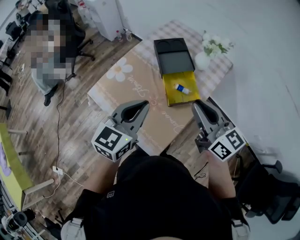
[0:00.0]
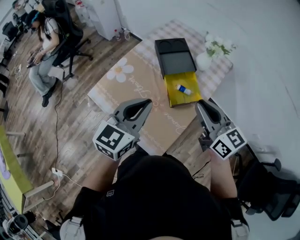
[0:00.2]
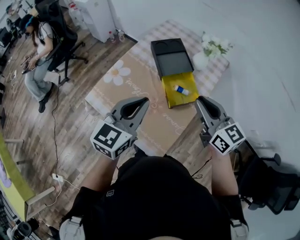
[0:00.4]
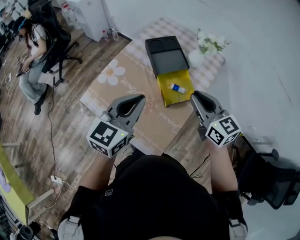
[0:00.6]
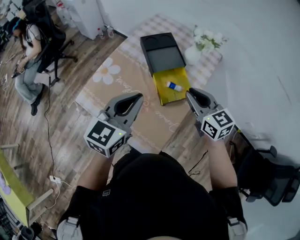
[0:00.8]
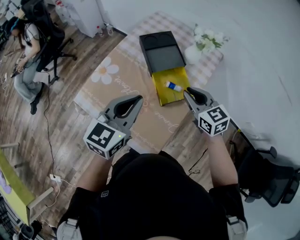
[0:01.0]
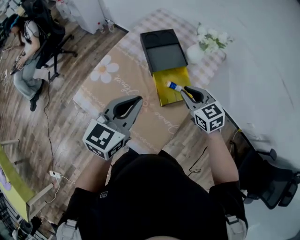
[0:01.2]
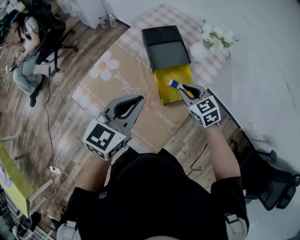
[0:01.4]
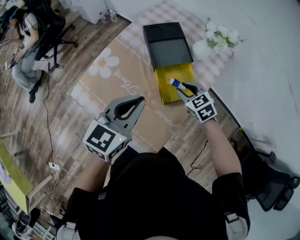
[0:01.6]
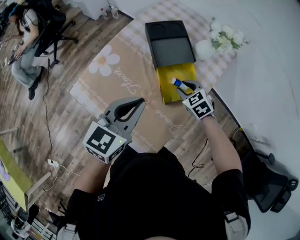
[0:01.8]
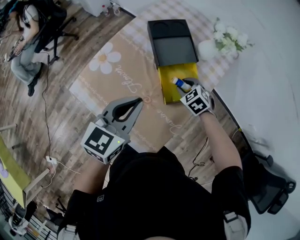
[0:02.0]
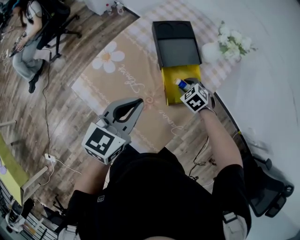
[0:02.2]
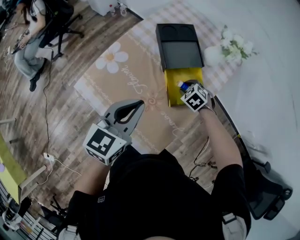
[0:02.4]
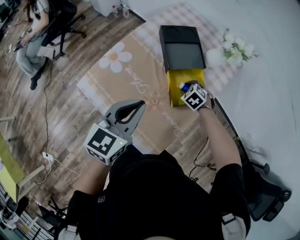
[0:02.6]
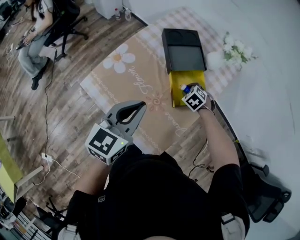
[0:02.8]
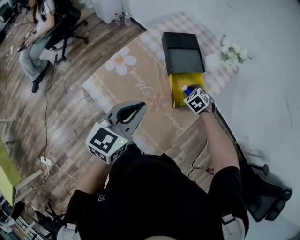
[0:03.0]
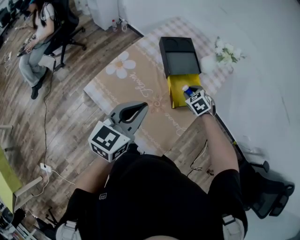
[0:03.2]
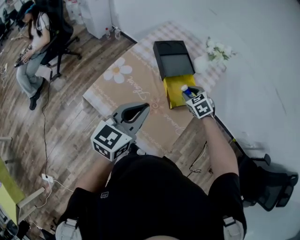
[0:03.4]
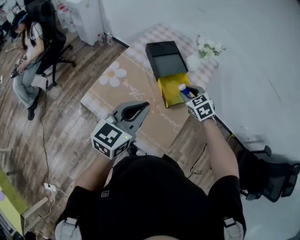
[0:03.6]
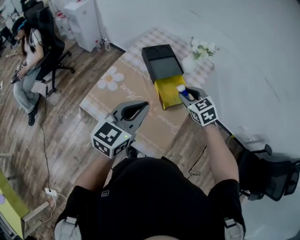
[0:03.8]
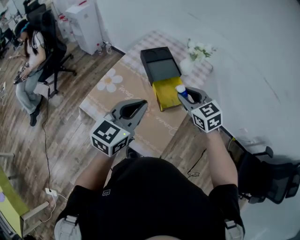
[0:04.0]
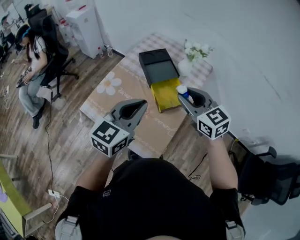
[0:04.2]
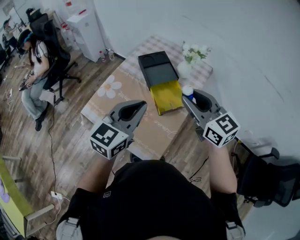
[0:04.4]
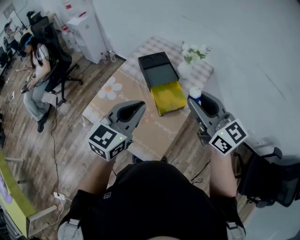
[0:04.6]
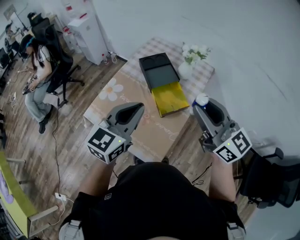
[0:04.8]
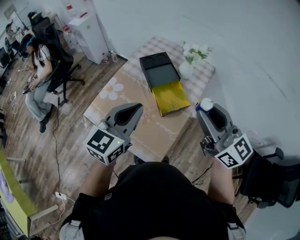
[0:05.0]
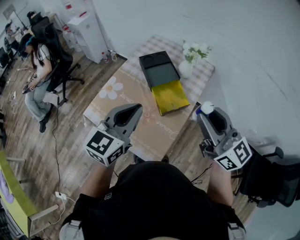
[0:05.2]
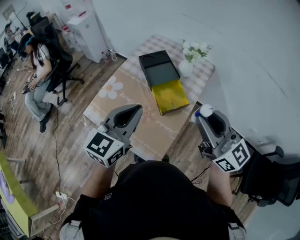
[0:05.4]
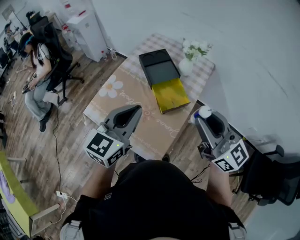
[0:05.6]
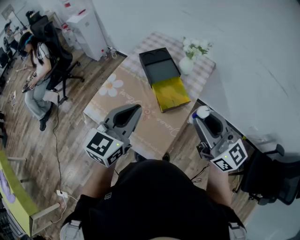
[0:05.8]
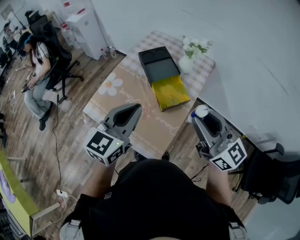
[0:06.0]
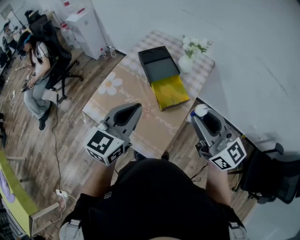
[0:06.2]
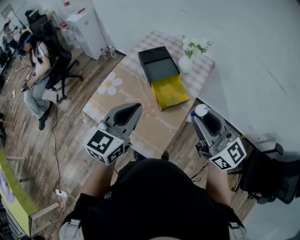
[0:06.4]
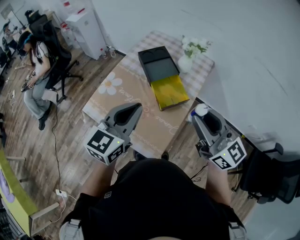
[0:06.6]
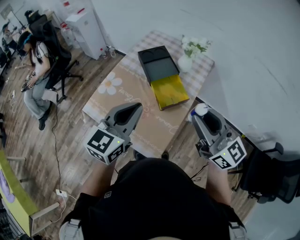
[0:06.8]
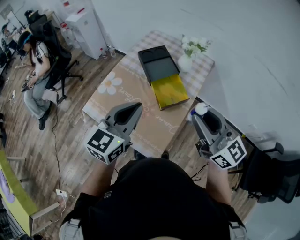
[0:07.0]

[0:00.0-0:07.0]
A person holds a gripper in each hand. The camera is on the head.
0:00.0 to 0:01.4: The right gripper heads downward and forward, covering about 25 cm, and tips its fingers downward by some 40 degrees, while the left gripper goes roughly 5 cm forward.
0:01.4 to 0:02.8: The left gripper heads to the left, covering about 5 cm. The right gripper shifts some 15 cm downward, tilts its fingers approximately 30 degrees downward, and opens.
0:02.8 to 0:04.2: The left gripper moves upward and to the right, about 10 cm, while the right gripper heads upward, covering some 35 cm, and tips its fingers upward by roughly 50 degrees.
0:04.2 to 0:05.6: The right gripper goes some 15 cm backward, upward and to the right, and points its fingers about 30 degrees further upward.
0:05.6 to 0:07.0: There are only small adjustments of the grippers.

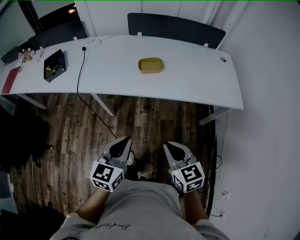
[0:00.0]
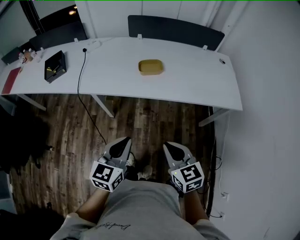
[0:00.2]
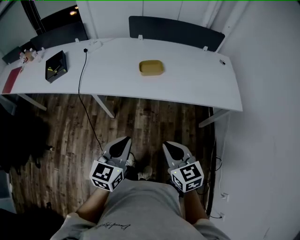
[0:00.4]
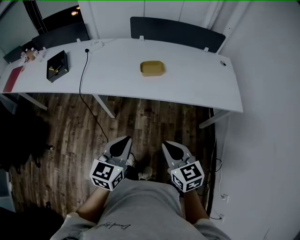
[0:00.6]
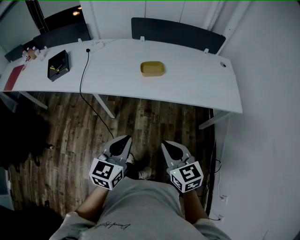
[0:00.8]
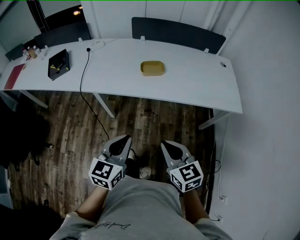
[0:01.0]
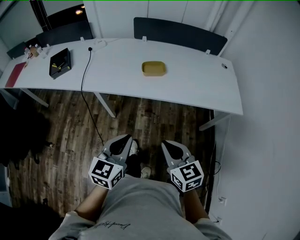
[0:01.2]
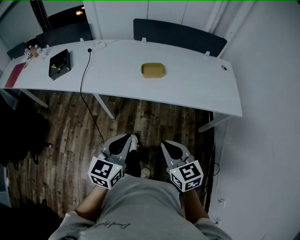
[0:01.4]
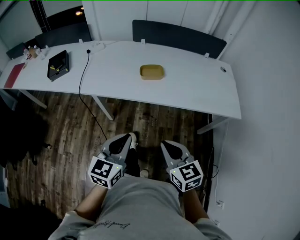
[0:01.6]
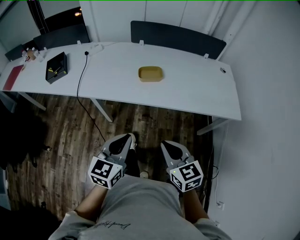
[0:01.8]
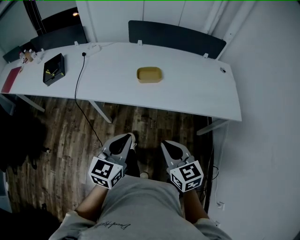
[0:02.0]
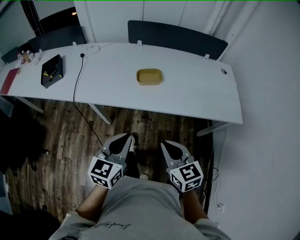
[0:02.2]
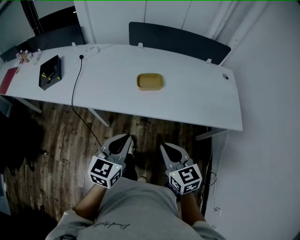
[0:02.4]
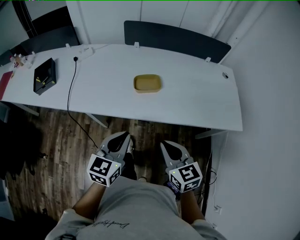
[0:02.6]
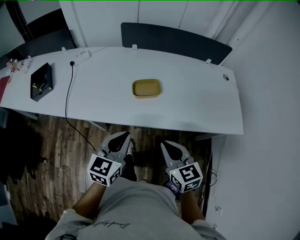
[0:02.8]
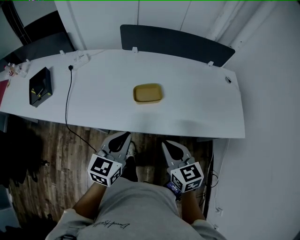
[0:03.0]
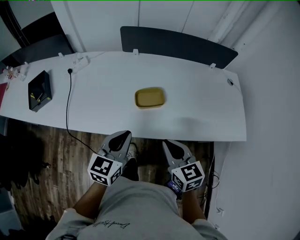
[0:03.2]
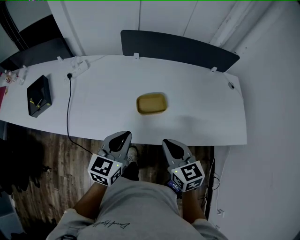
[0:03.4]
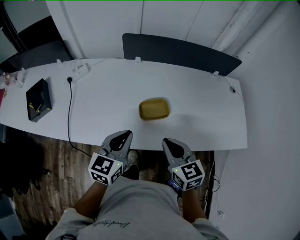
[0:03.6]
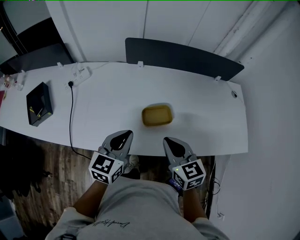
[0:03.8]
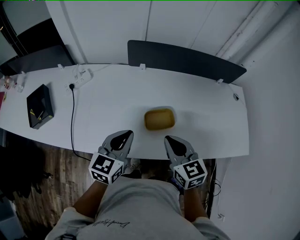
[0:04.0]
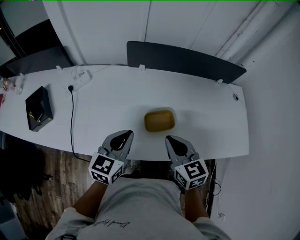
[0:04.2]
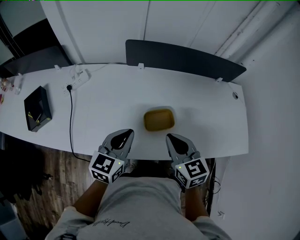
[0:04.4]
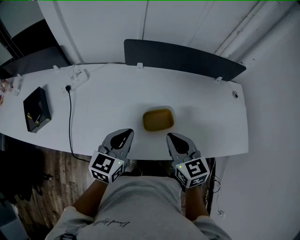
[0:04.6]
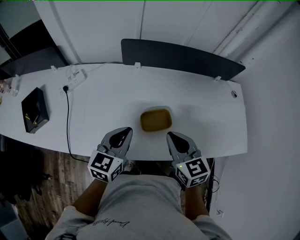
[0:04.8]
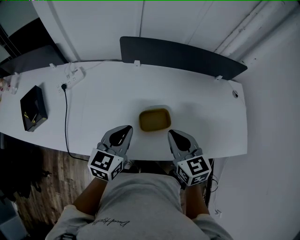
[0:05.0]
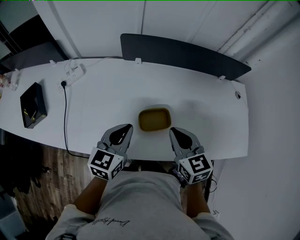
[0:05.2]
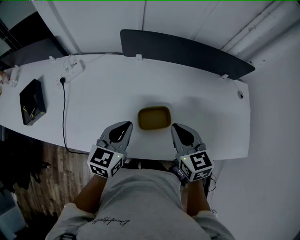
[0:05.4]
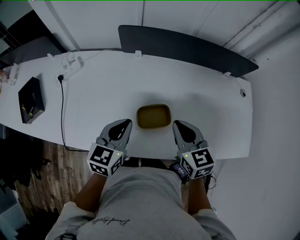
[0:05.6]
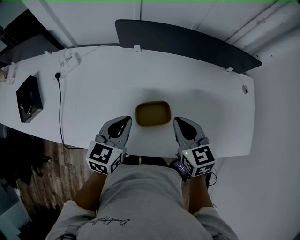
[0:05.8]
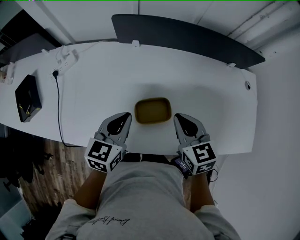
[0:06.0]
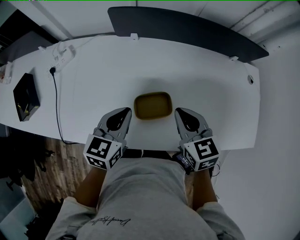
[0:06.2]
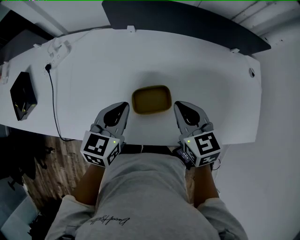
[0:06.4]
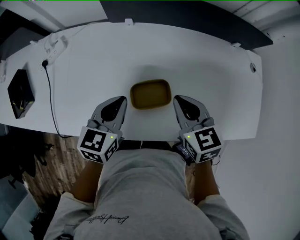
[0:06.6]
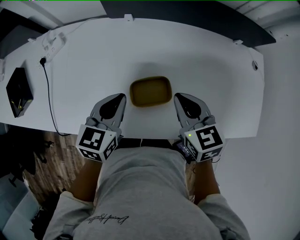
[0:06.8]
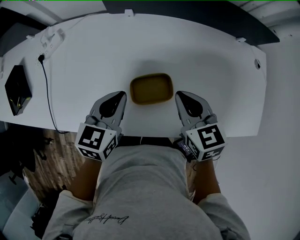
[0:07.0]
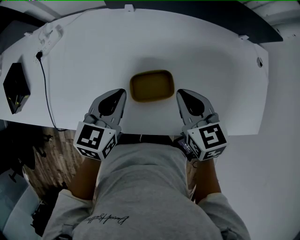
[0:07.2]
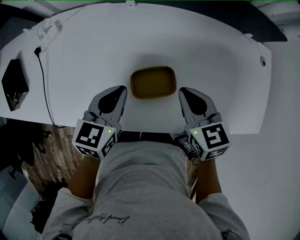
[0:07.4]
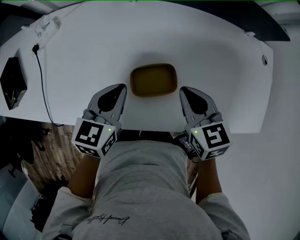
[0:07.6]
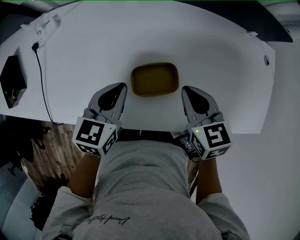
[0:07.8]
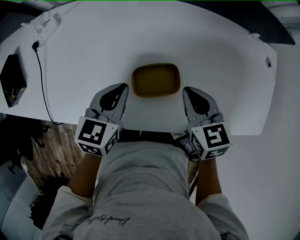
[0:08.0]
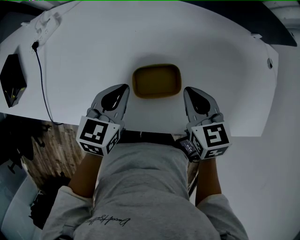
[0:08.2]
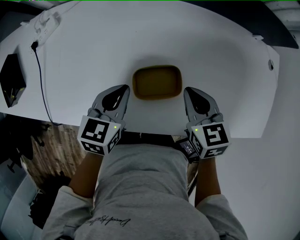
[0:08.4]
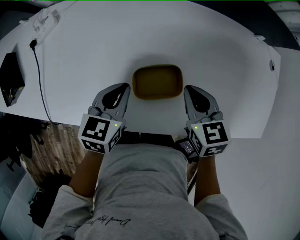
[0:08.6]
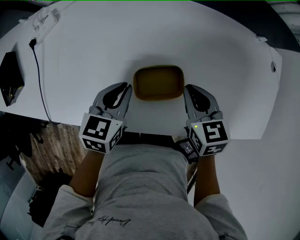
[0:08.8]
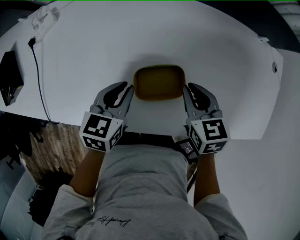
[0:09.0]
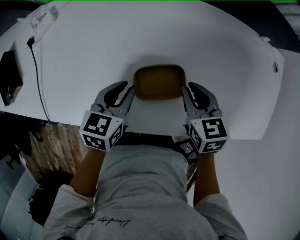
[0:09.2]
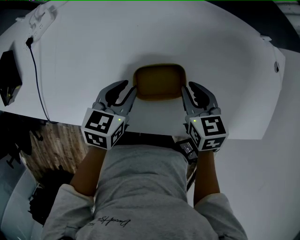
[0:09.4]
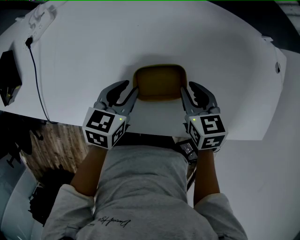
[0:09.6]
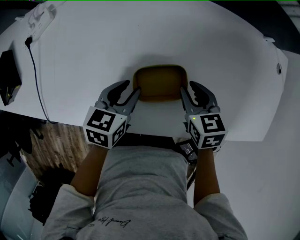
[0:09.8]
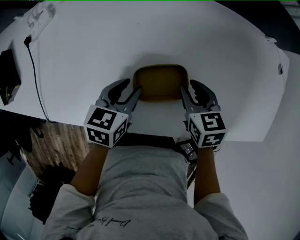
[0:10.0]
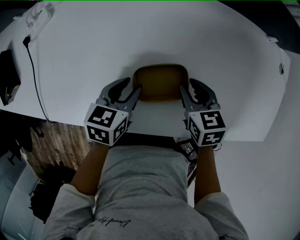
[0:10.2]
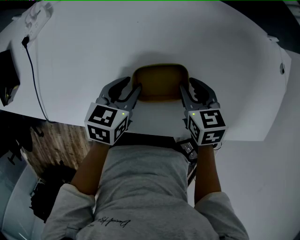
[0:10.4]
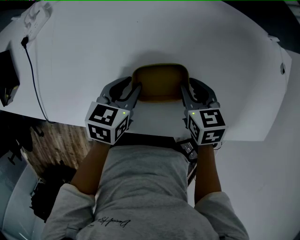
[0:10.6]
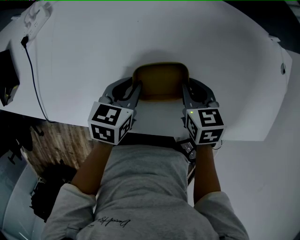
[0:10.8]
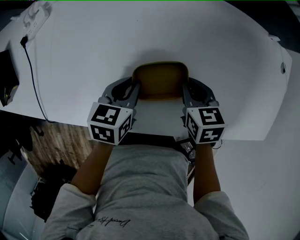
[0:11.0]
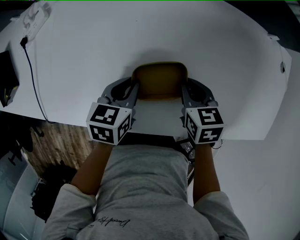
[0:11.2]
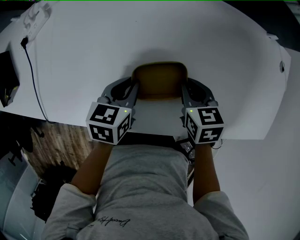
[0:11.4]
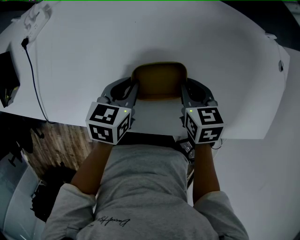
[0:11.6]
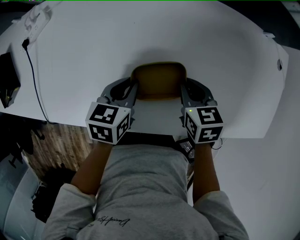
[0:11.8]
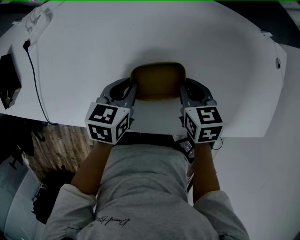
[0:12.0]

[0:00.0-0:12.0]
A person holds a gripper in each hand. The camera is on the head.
0:00.0 to 0:01.6: There are only small adjustments of the grippers.
0:01.6 to 0:03.0: The two grippers go about 25 cm forward.
0:03.0 to 0:04.4: The two grippers go about 20 cm forward.
0:04.4 to 0:06.0: The left gripper goes some 10 cm forward and downward; the right gripper travels forward and to the right by roughly 10 cm.
0:06.0 to 0:07.6: Both grippers travel together downward, approximately 5 cm.
0:07.6 to 0:09.0: Both grippers move downward, approximately 5 cm.
0:09.0 to 0:10.4: Both grippers travel together downward, about 5 cm. The left gripper opens up.
0:10.4 to 0:12.0: The left gripper closes its fingers. The right gripper closes up.

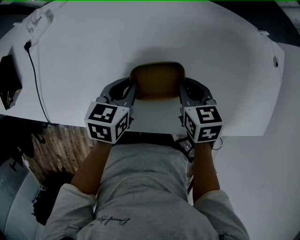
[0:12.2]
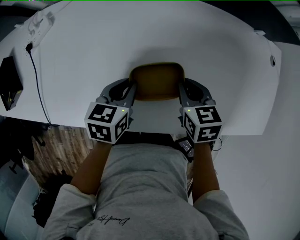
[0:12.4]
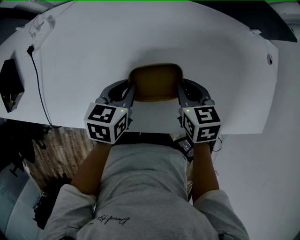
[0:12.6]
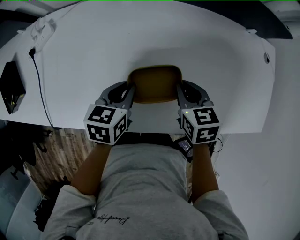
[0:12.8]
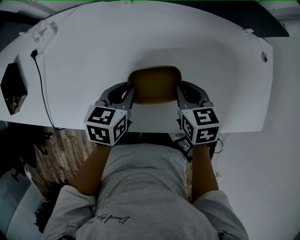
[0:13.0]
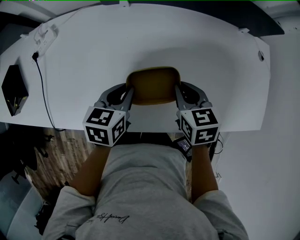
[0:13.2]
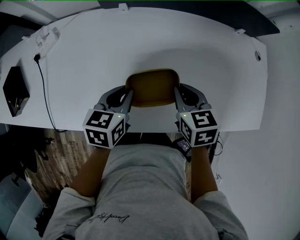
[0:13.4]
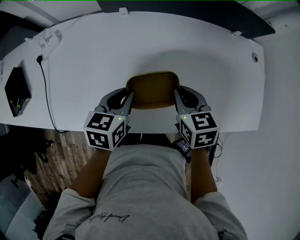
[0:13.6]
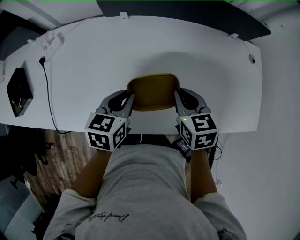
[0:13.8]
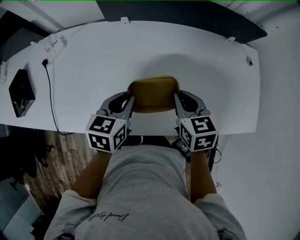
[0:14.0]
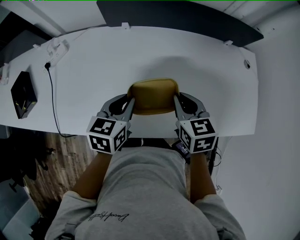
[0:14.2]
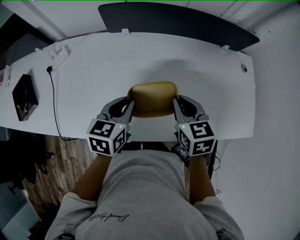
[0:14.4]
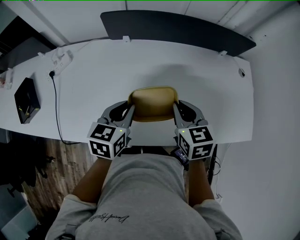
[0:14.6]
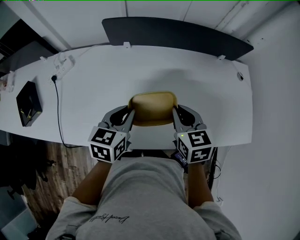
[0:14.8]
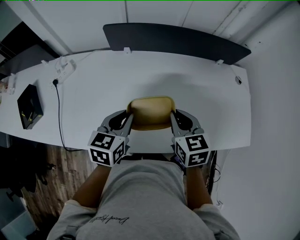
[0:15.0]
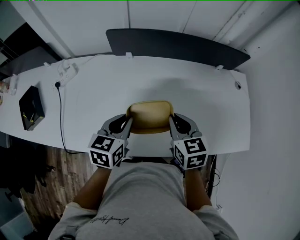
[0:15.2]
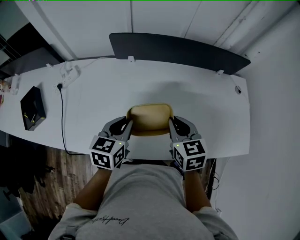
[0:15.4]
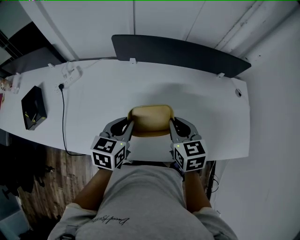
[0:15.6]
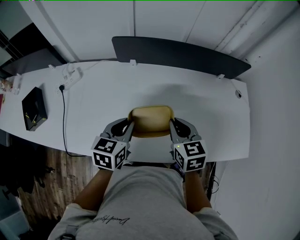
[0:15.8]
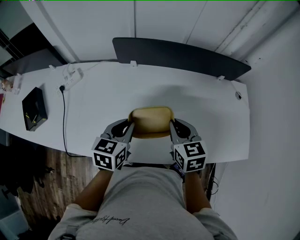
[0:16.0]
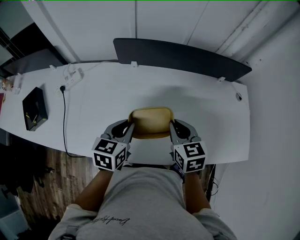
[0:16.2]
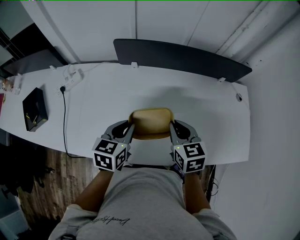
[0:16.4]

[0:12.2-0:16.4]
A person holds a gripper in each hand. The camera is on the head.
0:12.2 to 0:13.6: The two grippers go approximately 10 cm upward.
0:13.6 to 0:15.0: Both grippers move upward, roughly 10 cm.
0:15.0 to 0:16.4: There are only small adjustments of the grippers.
